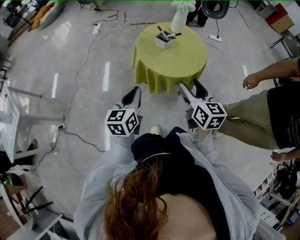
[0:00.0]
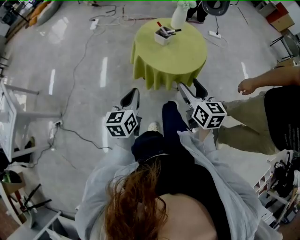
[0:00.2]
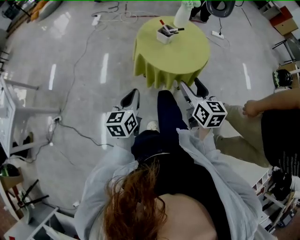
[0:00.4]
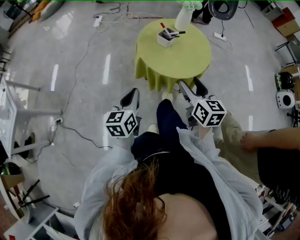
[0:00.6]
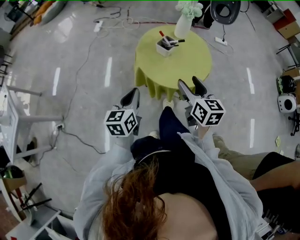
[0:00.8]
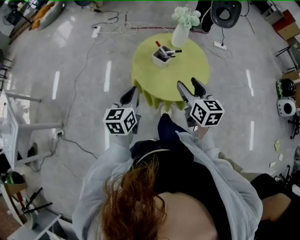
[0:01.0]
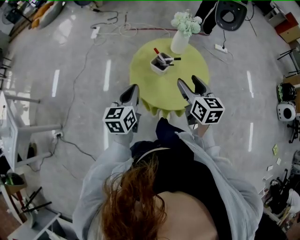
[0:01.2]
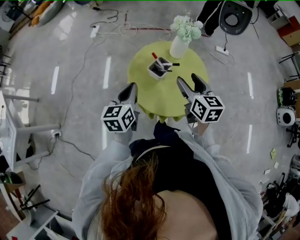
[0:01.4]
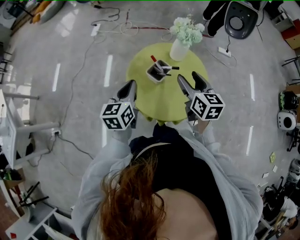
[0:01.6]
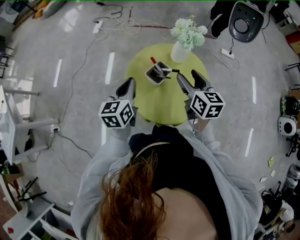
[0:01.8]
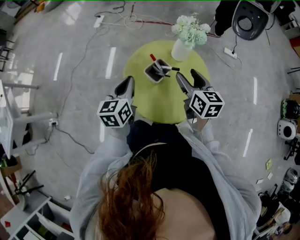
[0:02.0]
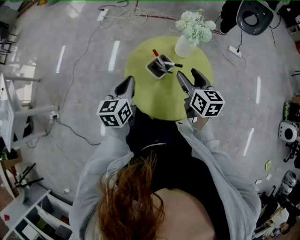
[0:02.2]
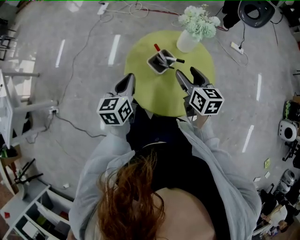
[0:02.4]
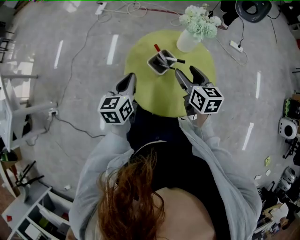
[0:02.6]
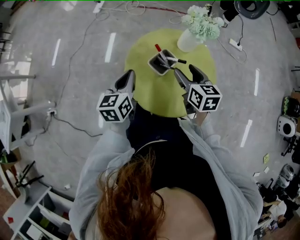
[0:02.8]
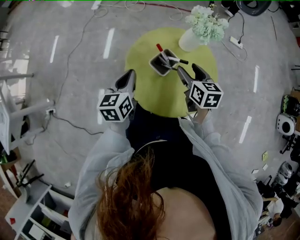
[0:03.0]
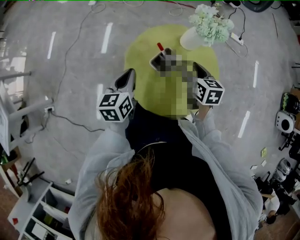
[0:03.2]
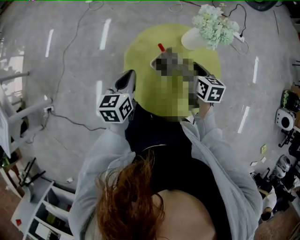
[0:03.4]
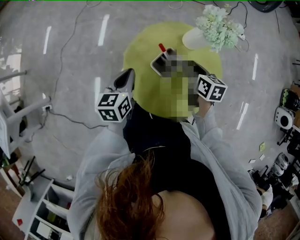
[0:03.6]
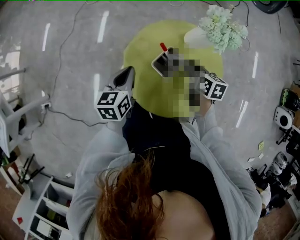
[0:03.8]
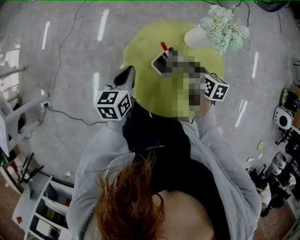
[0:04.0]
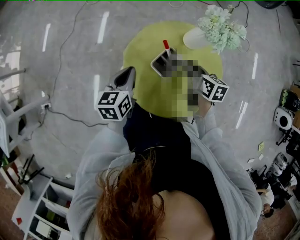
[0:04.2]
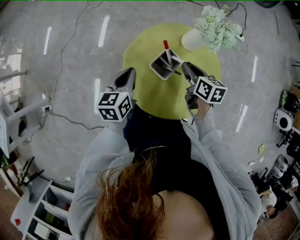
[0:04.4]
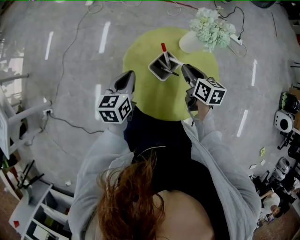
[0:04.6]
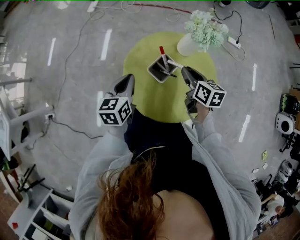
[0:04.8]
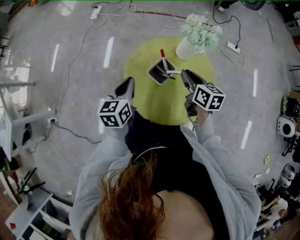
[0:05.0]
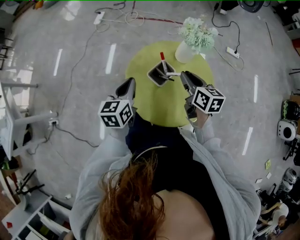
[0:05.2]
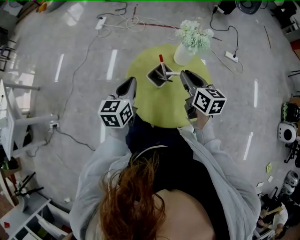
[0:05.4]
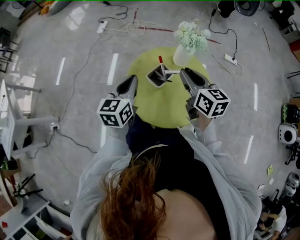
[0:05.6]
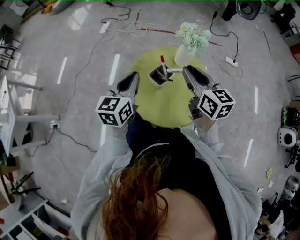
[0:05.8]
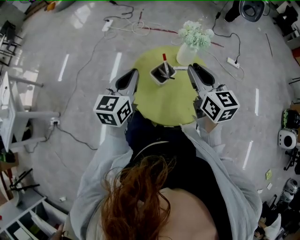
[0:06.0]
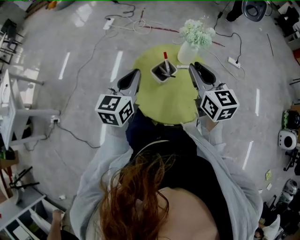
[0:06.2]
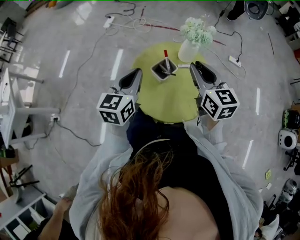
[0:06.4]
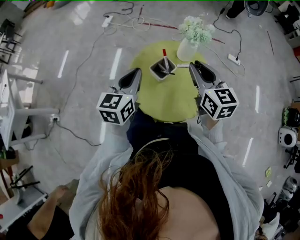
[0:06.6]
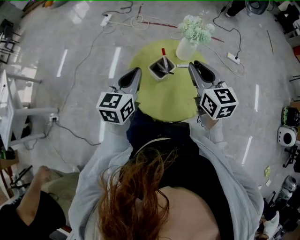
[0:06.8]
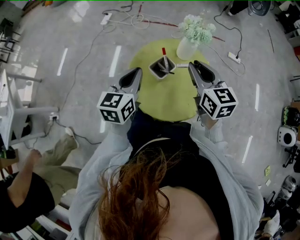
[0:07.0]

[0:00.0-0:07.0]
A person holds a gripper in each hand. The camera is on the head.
0:00.0 to 0:01.4: The two grippers go approximately 25 cm forward.
0:01.4 to 0:02.8: The right gripper moves downward and forward, roughly 10 cm. Meanwhile the left gripper heads forward, covering roughly 5 cm.
0:02.8 to 0:04.2: The grippers both shift downward by some 5 cm. The right gripper closes its fingers.
0:04.2 to 0:05.6: The two grippers go about 15 cm upward. The right gripper turns by about 30 degrees.
0:05.6 to 0:07.0: The grippers move only a little.

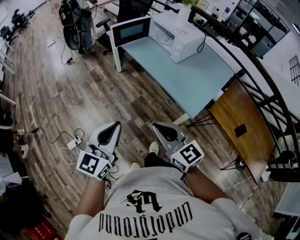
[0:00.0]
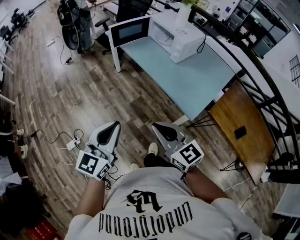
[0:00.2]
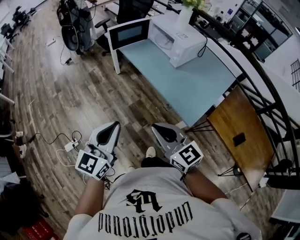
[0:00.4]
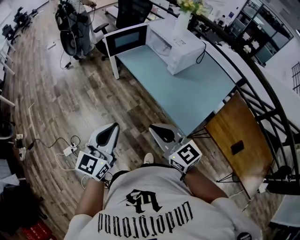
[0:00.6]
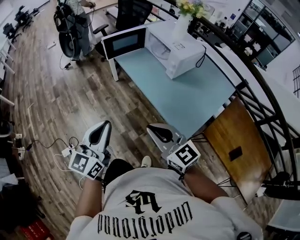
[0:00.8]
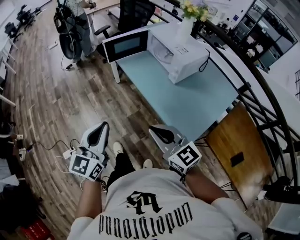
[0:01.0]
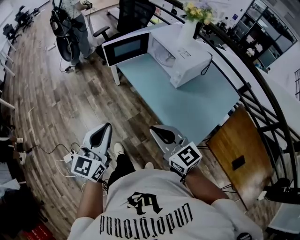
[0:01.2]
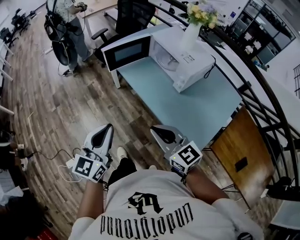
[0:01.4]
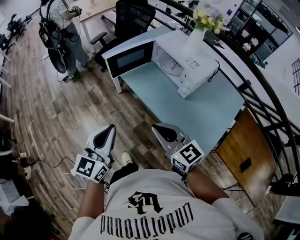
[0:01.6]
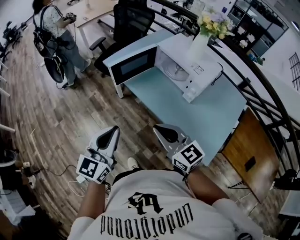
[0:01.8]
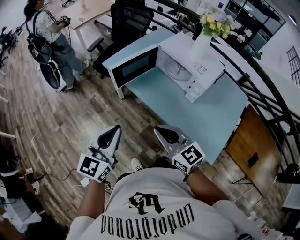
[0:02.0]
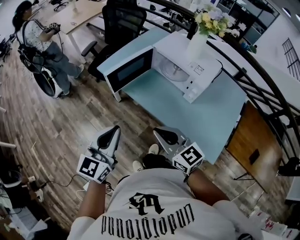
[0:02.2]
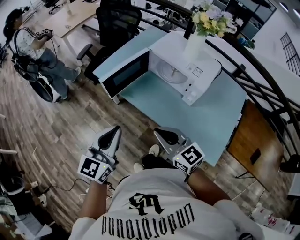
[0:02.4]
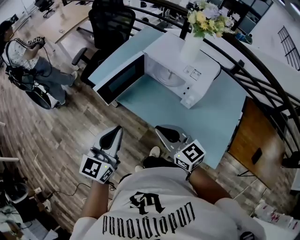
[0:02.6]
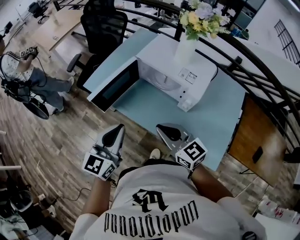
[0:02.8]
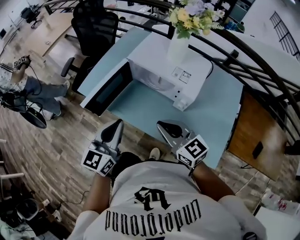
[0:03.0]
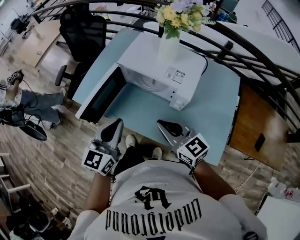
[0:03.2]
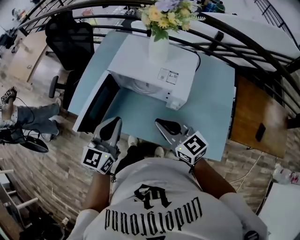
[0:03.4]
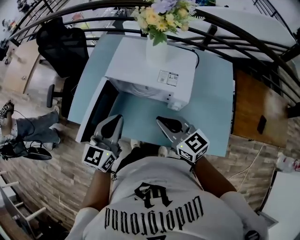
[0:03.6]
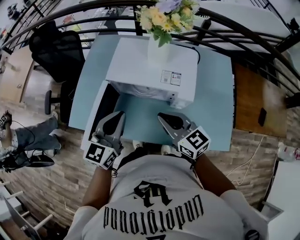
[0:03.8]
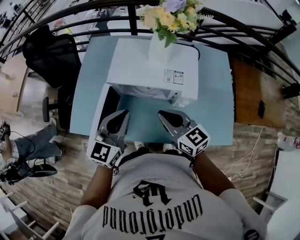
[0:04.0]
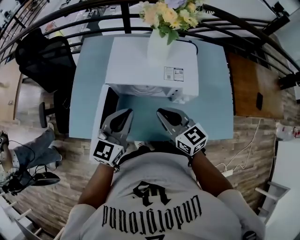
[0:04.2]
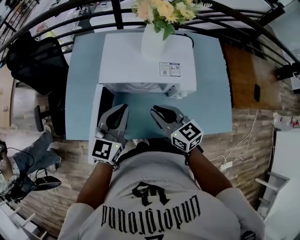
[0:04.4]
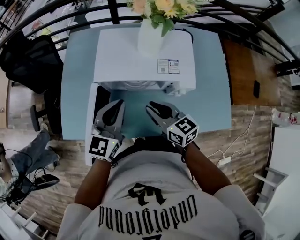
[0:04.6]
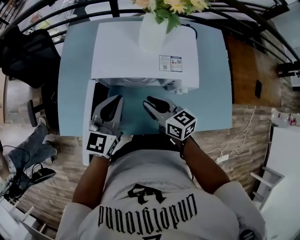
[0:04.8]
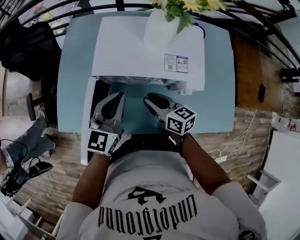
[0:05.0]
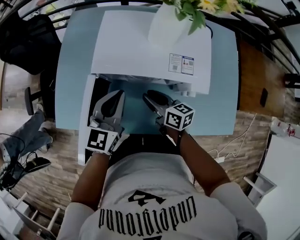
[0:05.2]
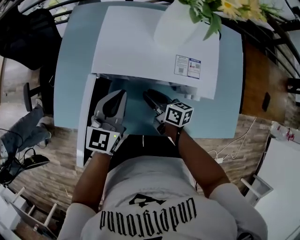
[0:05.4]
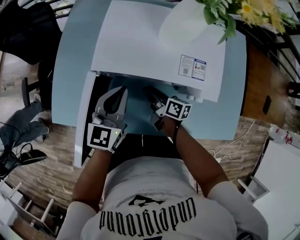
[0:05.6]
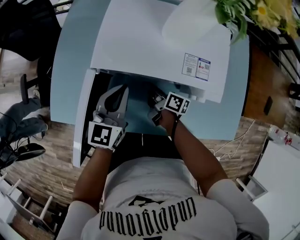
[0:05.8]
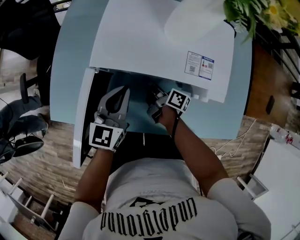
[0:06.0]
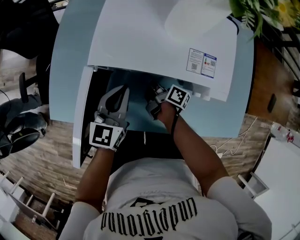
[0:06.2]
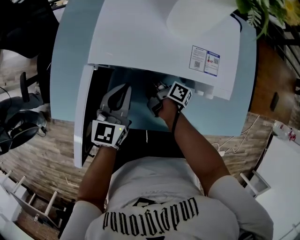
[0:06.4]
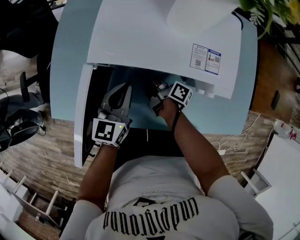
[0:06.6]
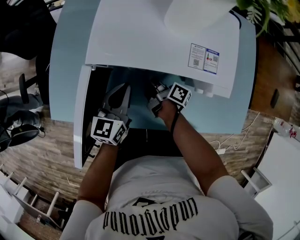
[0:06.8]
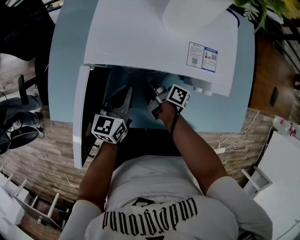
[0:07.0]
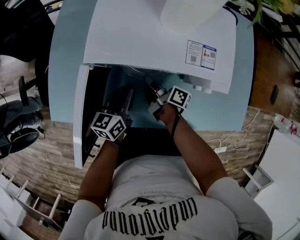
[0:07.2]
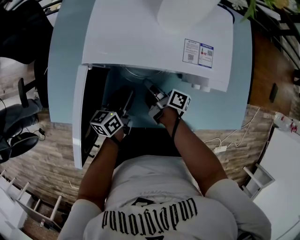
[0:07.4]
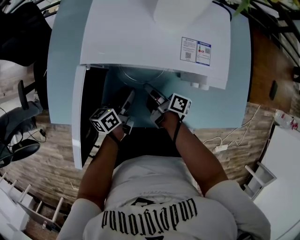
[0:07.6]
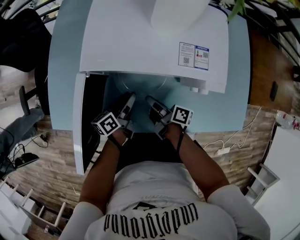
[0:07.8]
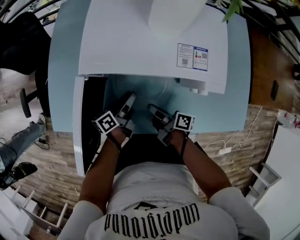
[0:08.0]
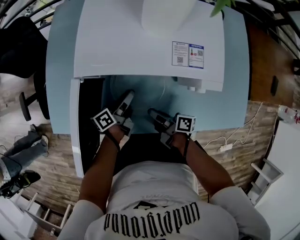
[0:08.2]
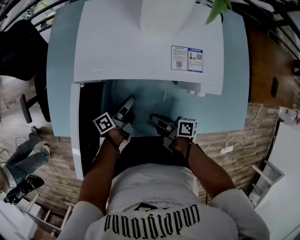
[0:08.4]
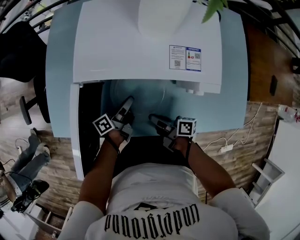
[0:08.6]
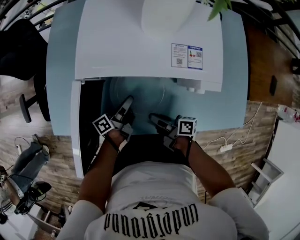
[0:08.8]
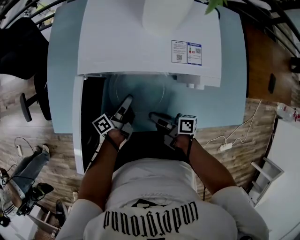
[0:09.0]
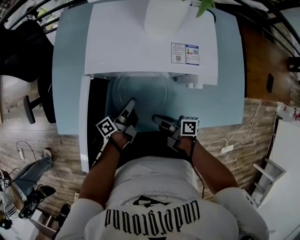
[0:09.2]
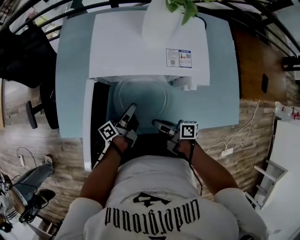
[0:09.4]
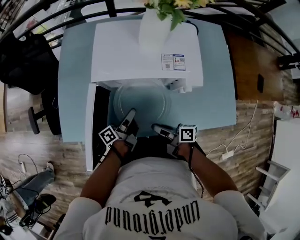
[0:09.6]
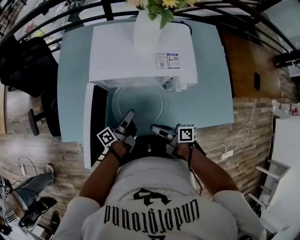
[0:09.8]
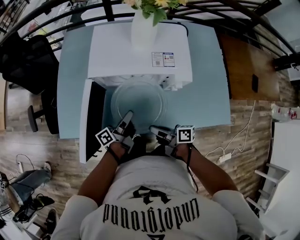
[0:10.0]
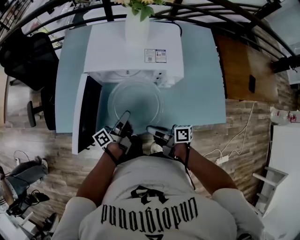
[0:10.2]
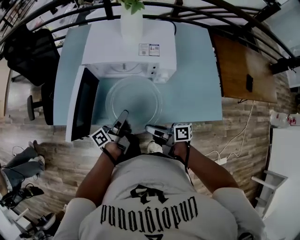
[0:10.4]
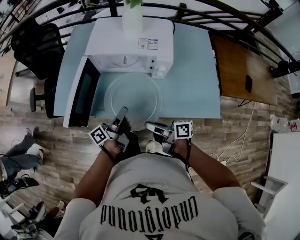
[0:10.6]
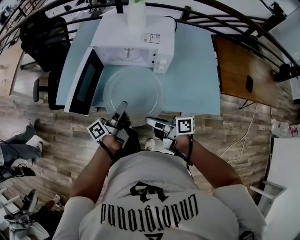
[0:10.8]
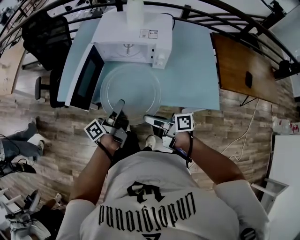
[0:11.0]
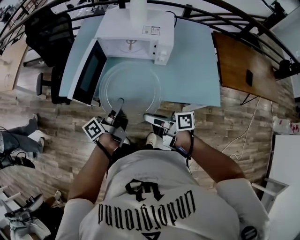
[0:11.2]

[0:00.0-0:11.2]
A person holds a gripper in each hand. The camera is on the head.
0:00.0 to 0:01.6: The grippers both shift forward by about 30 cm.
0:01.6 to 0:03.2: The two grippers go about 25 cm forward. The left gripper rotates some 30 degrees. Meanwhile the right gripper changes its angle by about 20 degrees.
0:03.2 to 0:04.8: The left gripper changes place by some 20 cm, and turns by about 20 degrees, while the right gripper ends up some 20 cm from where it was, and rotates approximately 40 degrees.
0:04.8 to 0:06.4: The right gripper travels downward and forward by roughly 25 cm, and rolls clockwise, seen from behind, by roughly 60 degrees. Meanwhile the left gripper shifts about 15 cm downward.
0:06.4 to 0:08.0: The left gripper heads downward, covering some 15 cm, rolls counterclockwise, seen from behind, by some 60 degrees, and opens its fingers, while the right gripper heads backward, covering roughly 10 cm.
0:08.0 to 0:09.6: The right gripper moves backward and upward, some 10 cm. Meanwhile the left gripper shifts roughly 10 cm upward, and closes up.
0:09.6 to 0:11.2: The two grippers go some 25 cm backward and upward.

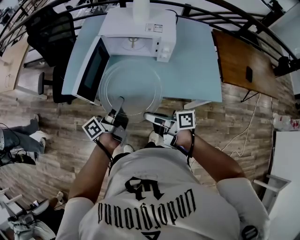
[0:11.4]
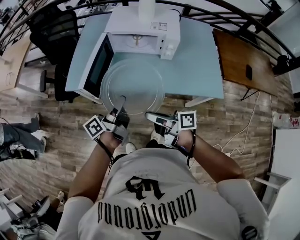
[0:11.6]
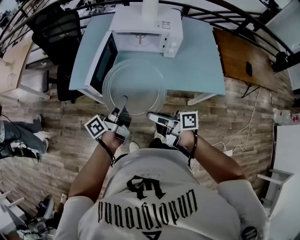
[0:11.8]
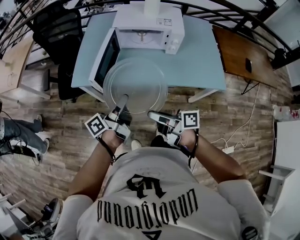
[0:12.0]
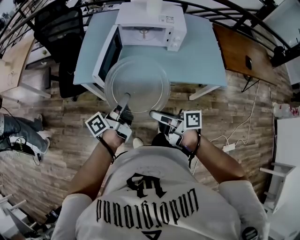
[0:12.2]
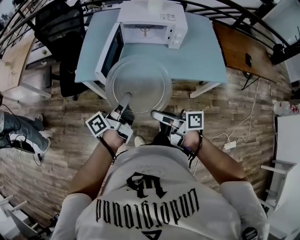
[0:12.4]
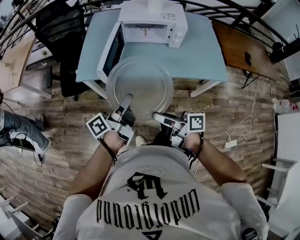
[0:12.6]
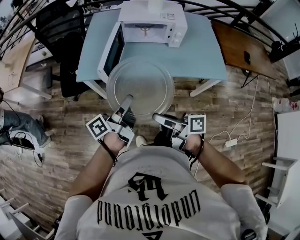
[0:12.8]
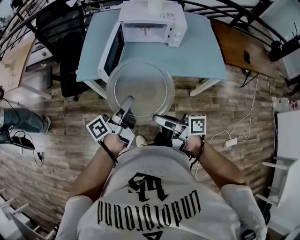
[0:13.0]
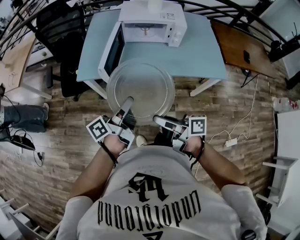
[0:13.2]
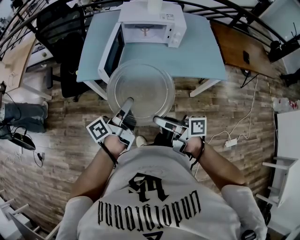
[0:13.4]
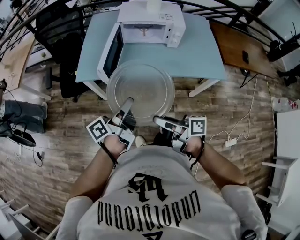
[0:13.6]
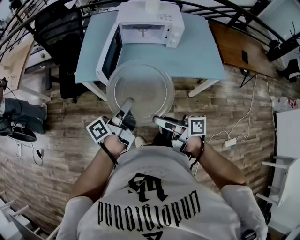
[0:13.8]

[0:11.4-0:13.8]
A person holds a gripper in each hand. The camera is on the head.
0:11.4 to 0:12.6: Both grippers move to the left and backward, roughly 15 cm.
0:12.6 to 0:13.8: There are only small adjustments of the grippers.

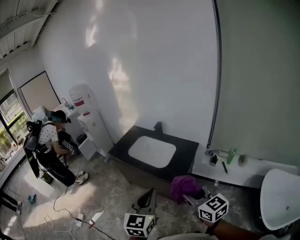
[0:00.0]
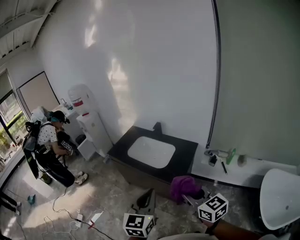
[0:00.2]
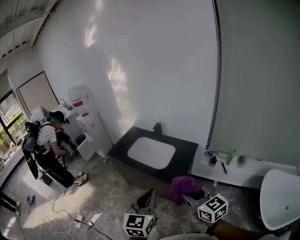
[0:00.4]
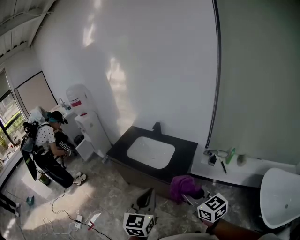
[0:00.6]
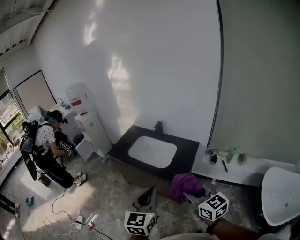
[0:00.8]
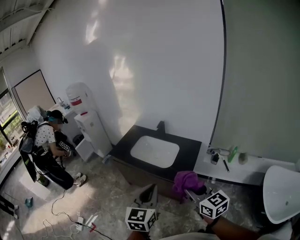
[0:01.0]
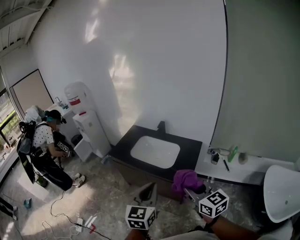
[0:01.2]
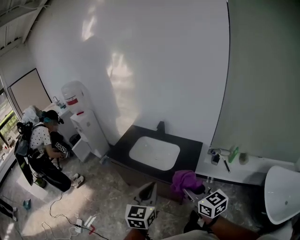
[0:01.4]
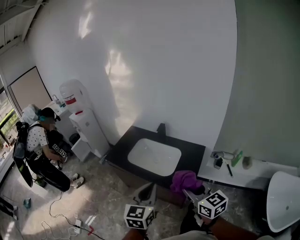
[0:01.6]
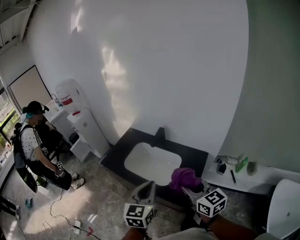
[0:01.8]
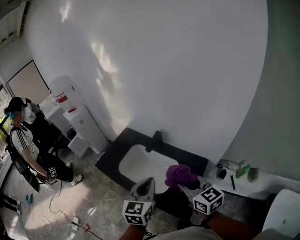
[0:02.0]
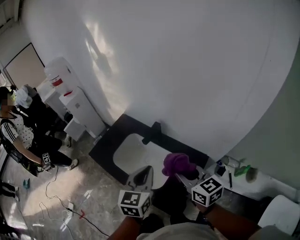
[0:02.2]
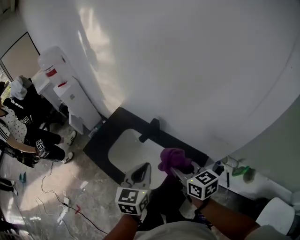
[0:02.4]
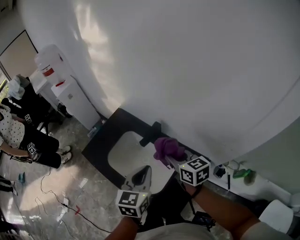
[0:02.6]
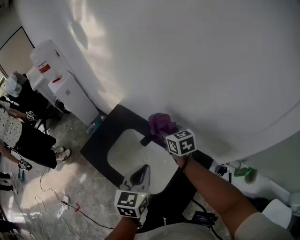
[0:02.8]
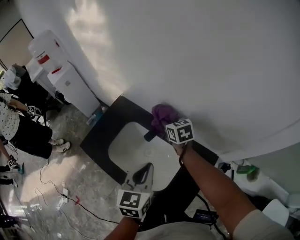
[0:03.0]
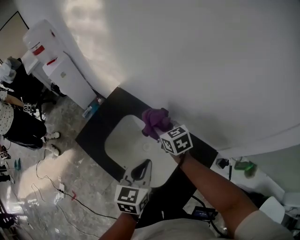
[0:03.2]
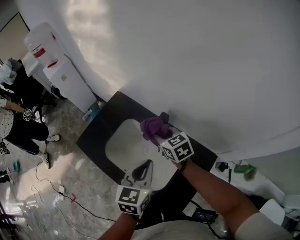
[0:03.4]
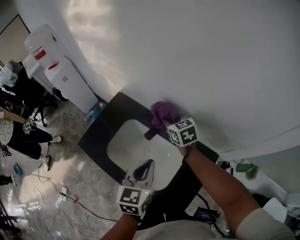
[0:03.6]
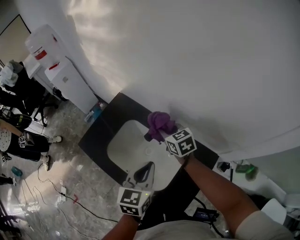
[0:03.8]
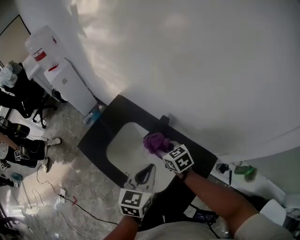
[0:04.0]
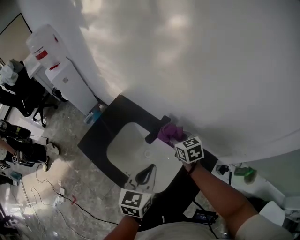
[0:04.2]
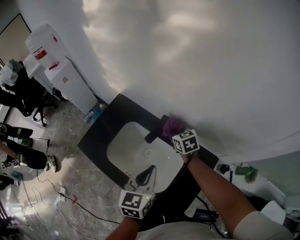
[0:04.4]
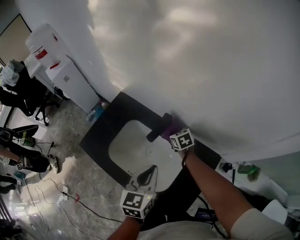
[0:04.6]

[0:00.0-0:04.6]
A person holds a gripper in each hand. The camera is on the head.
0:00.0 to 0:01.6: The two grippers go approximately 20 cm forward.
0:01.6 to 0:03.0: The two grippers travel together, forward, approximately 50 cm. The right gripper turns by roughly 30 degrees.
0:03.0 to 0:04.6: The right gripper moves downward, roughly 15 cm.
